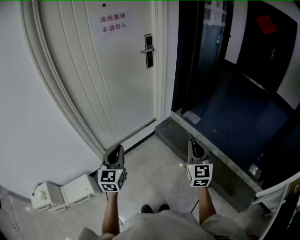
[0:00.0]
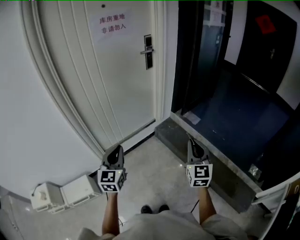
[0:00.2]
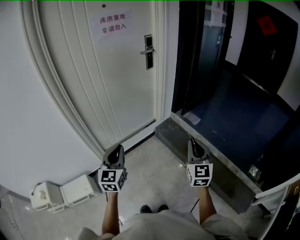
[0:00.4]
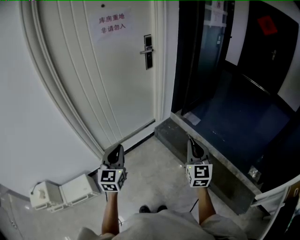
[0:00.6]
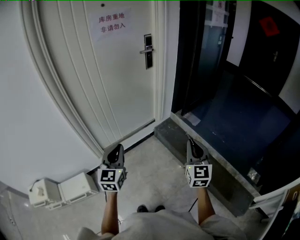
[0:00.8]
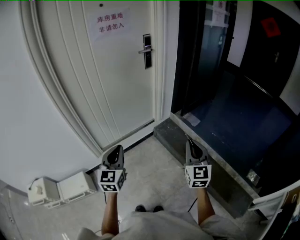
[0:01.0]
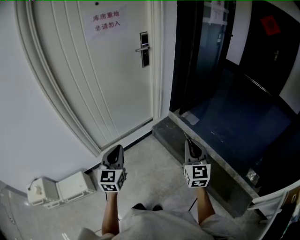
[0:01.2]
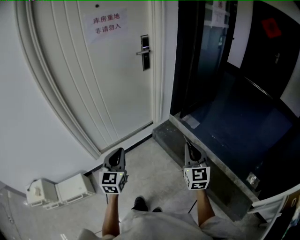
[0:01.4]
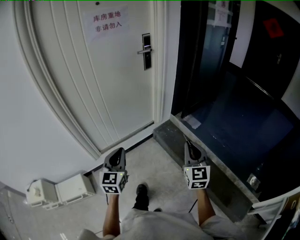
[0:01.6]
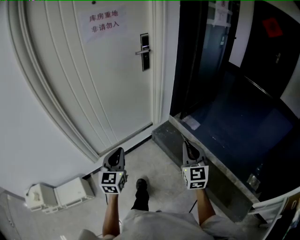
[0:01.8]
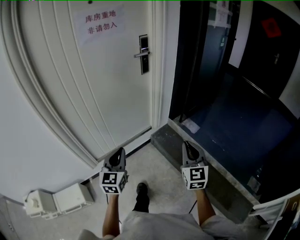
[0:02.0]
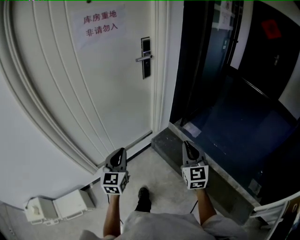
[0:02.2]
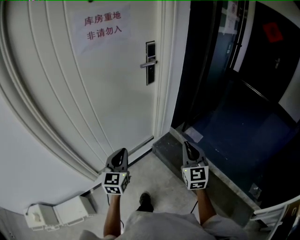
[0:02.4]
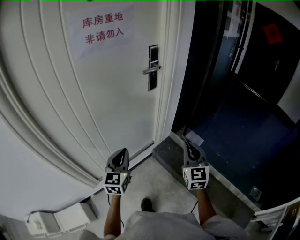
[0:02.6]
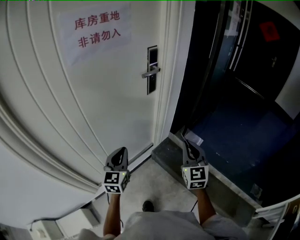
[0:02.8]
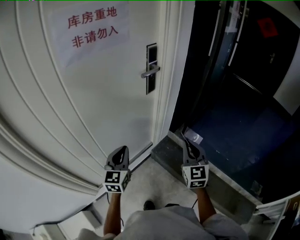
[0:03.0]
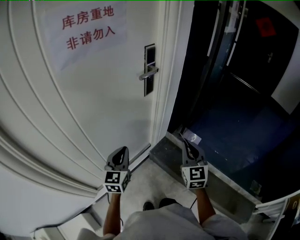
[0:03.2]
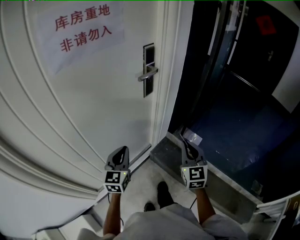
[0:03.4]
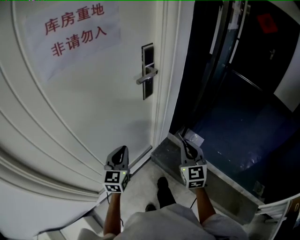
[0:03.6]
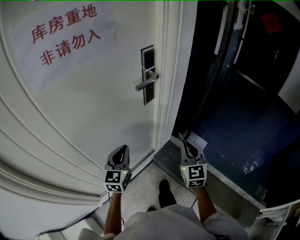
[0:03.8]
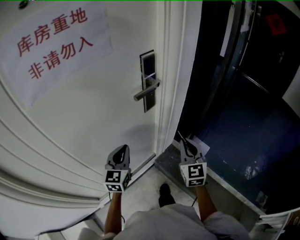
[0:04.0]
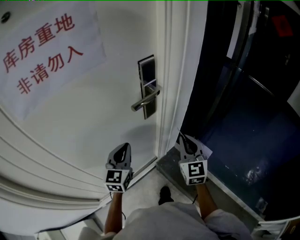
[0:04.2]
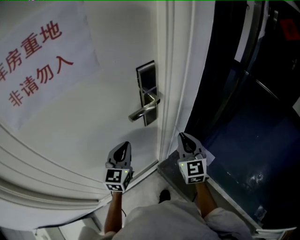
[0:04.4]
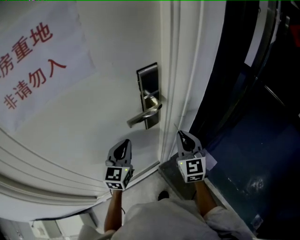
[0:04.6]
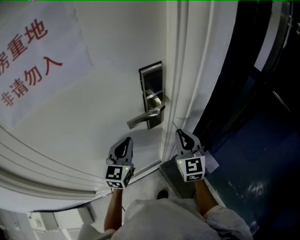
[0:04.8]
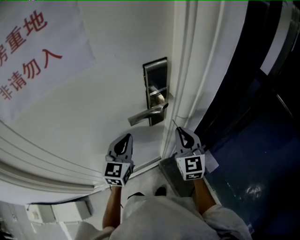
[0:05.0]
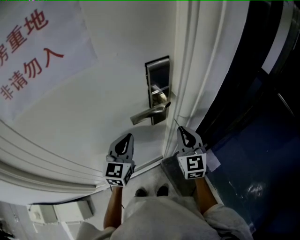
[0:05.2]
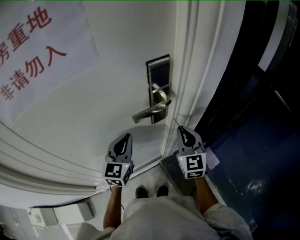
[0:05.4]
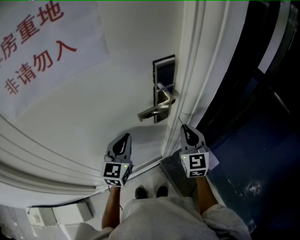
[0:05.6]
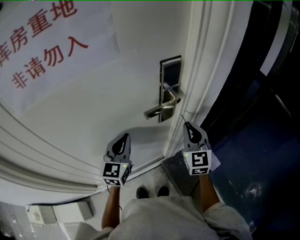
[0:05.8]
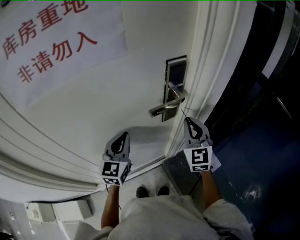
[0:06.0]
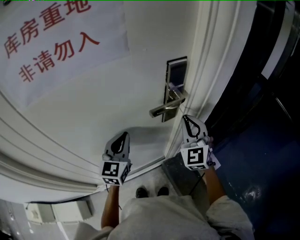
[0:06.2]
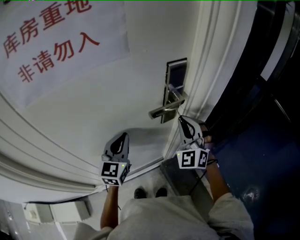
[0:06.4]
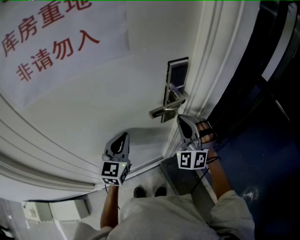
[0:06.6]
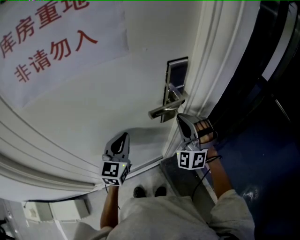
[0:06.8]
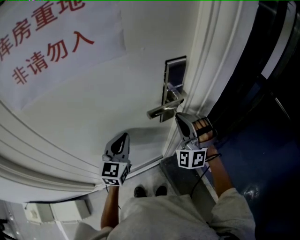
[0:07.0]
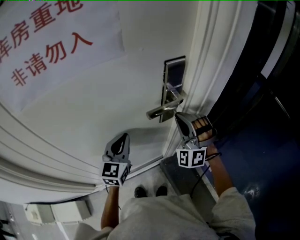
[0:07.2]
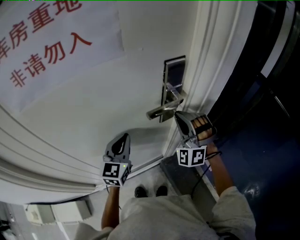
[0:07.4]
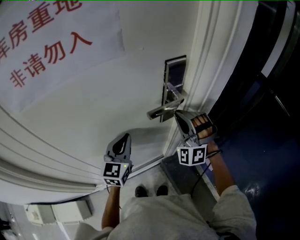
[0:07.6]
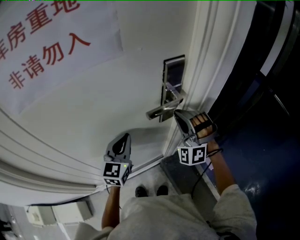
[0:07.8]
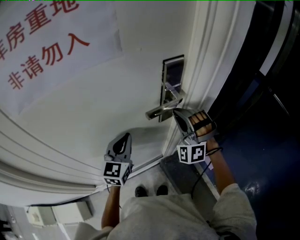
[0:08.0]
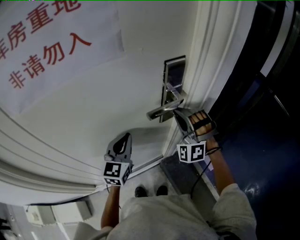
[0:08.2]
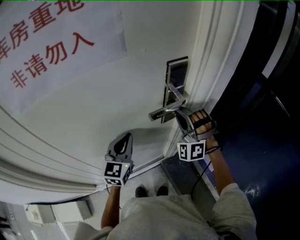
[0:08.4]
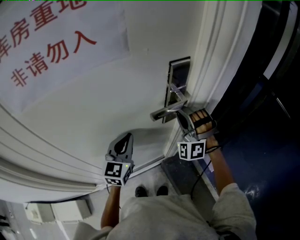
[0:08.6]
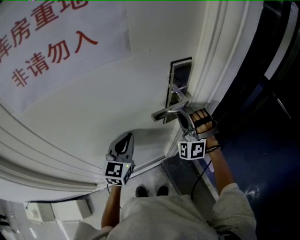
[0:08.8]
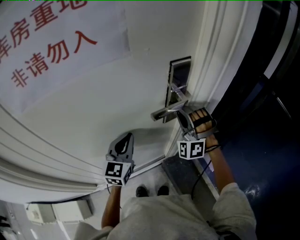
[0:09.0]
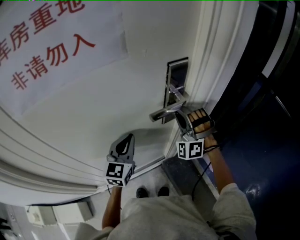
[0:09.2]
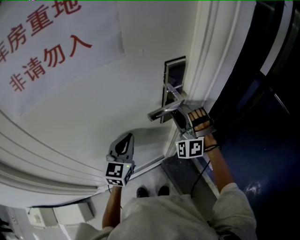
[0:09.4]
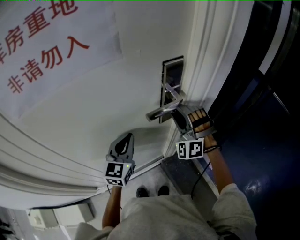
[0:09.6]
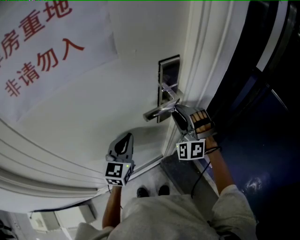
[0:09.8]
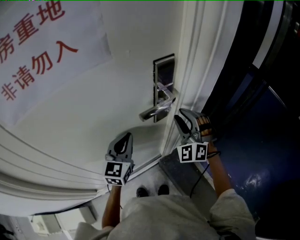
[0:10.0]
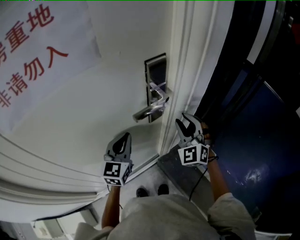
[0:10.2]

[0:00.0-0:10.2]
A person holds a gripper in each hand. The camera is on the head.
0:00.0 to 0:01.4: Both grippers travel together to the right, roughly 5 cm.
0:01.4 to 0:03.0: Both grippers are carried forward, roughly 40 cm.
0:03.0 to 0:04.4: The two grippers go some 30 cm forward.
0:04.4 to 0:05.8: The right gripper goes some 5 cm forward.
0:05.8 to 0:07.2: The right gripper is displaced to the left by some 5 cm, and rotates around the line of its fingers by roughly 60 degrees, counterclockwise from behind.
0:07.2 to 0:08.8: There are only small adjustments of the grippers.
0:08.8 to 0:10.2: The right gripper goes about 10 cm to the right, changes its angle by approximately 40 degrees, and opens up.

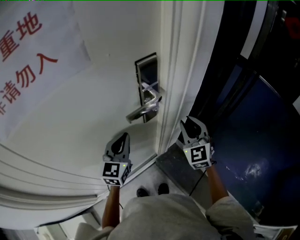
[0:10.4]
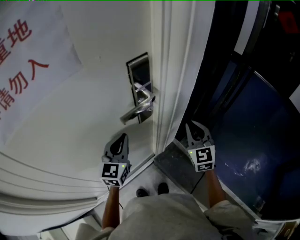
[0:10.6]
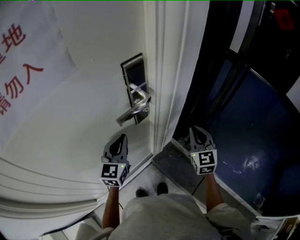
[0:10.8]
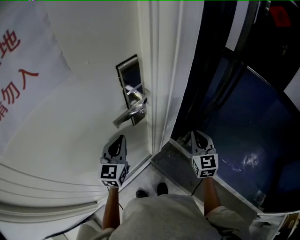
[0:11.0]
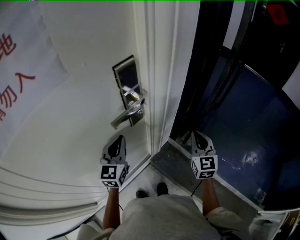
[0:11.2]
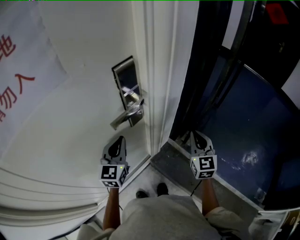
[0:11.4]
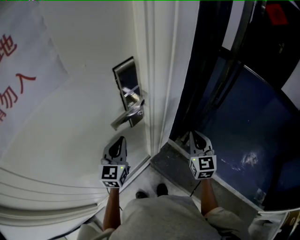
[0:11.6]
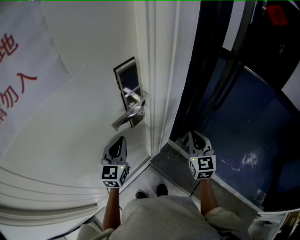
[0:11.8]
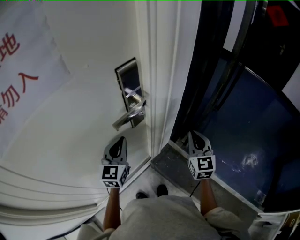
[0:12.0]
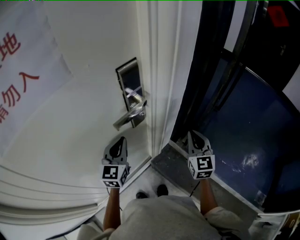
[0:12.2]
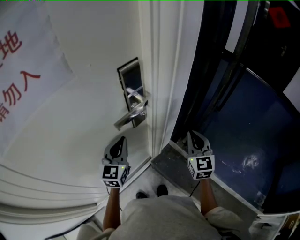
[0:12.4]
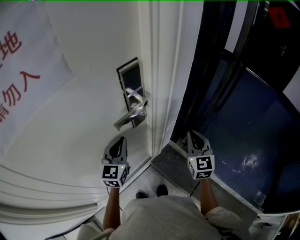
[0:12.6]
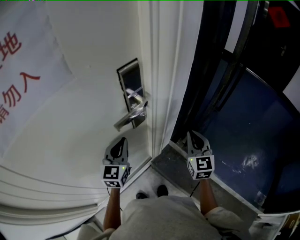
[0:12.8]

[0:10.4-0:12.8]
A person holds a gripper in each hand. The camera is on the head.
0:10.4 to 0:11.6: The right gripper shifts approximately 10 cm to the right, turns by about 30 degrees, and closes up.
0:11.6 to 0:12.8: There are only small adjustments of the grippers.

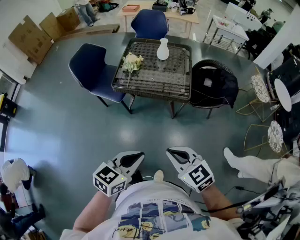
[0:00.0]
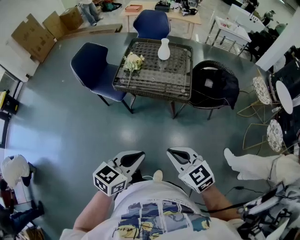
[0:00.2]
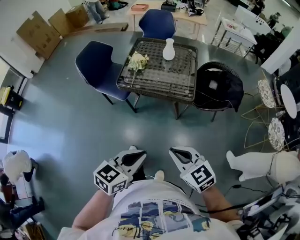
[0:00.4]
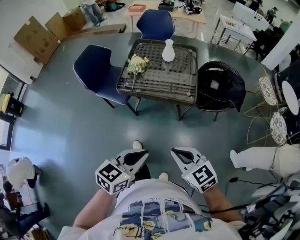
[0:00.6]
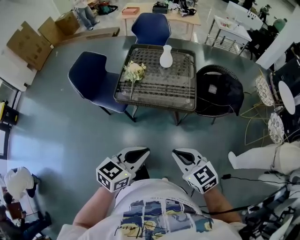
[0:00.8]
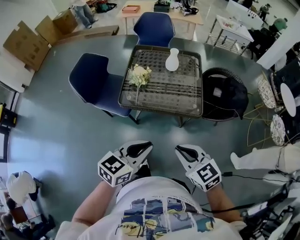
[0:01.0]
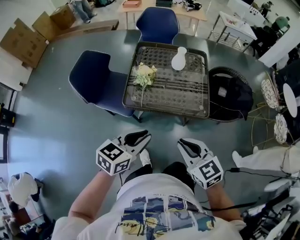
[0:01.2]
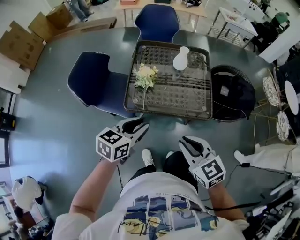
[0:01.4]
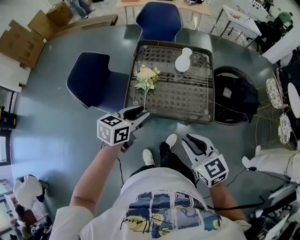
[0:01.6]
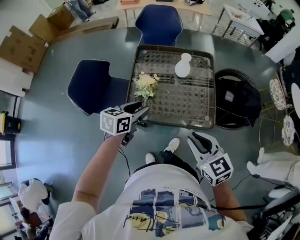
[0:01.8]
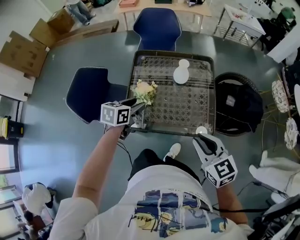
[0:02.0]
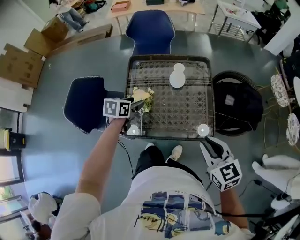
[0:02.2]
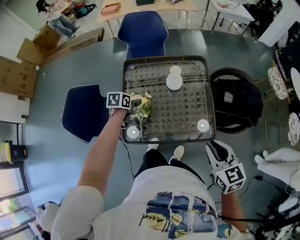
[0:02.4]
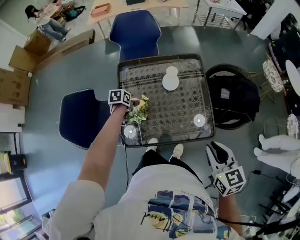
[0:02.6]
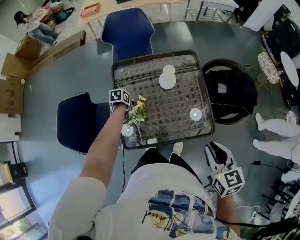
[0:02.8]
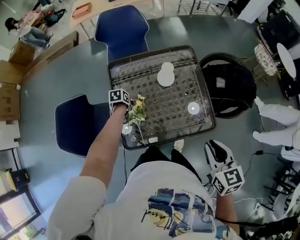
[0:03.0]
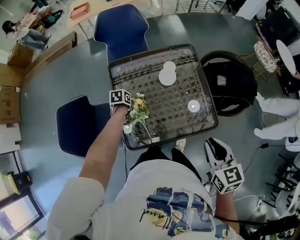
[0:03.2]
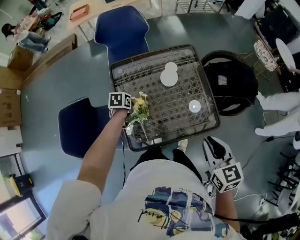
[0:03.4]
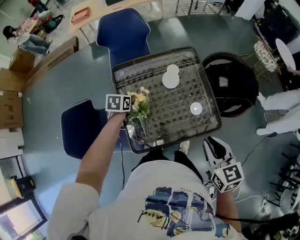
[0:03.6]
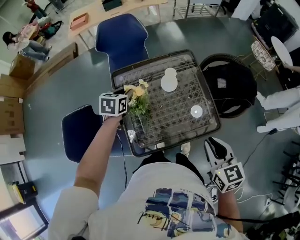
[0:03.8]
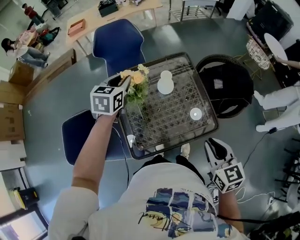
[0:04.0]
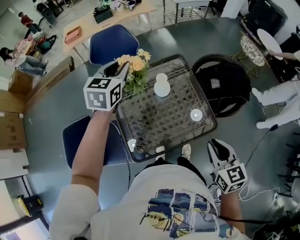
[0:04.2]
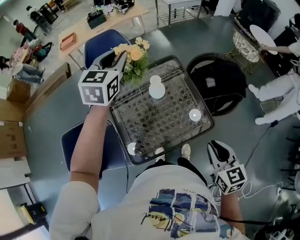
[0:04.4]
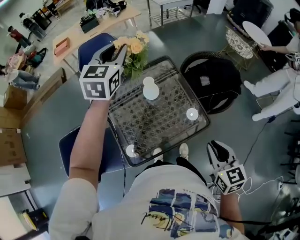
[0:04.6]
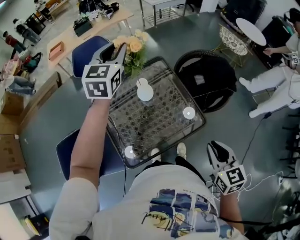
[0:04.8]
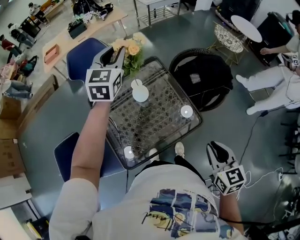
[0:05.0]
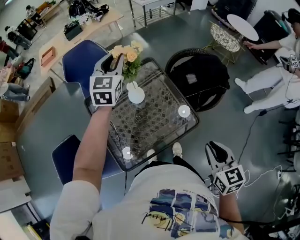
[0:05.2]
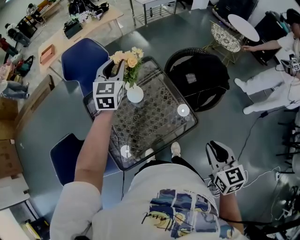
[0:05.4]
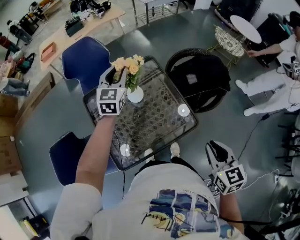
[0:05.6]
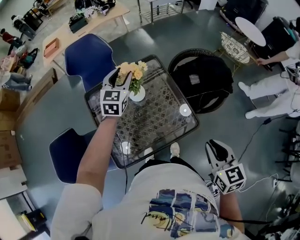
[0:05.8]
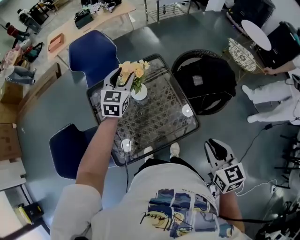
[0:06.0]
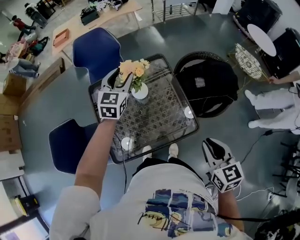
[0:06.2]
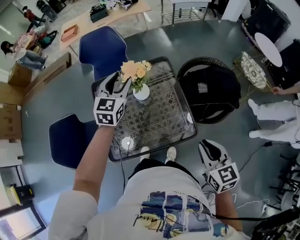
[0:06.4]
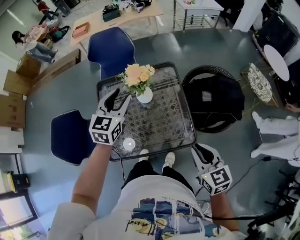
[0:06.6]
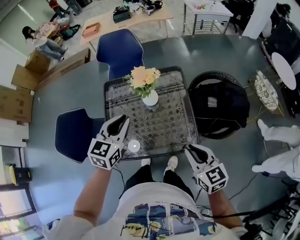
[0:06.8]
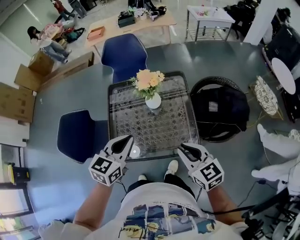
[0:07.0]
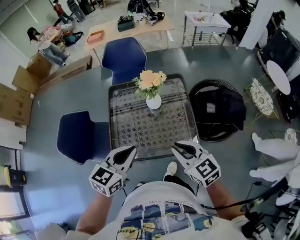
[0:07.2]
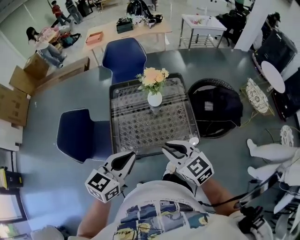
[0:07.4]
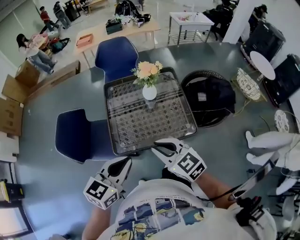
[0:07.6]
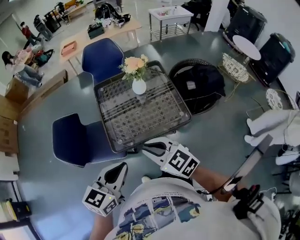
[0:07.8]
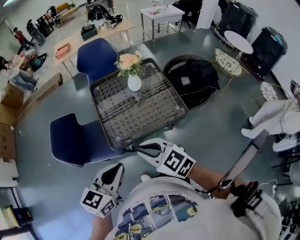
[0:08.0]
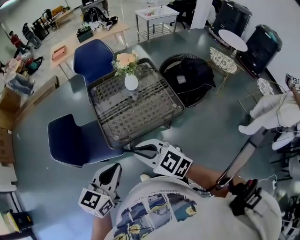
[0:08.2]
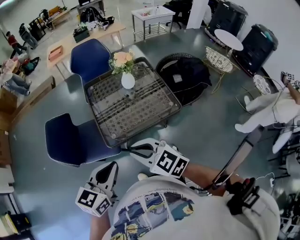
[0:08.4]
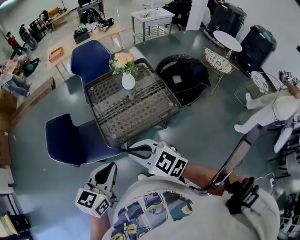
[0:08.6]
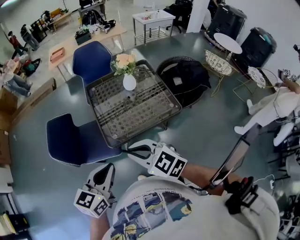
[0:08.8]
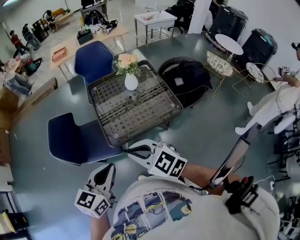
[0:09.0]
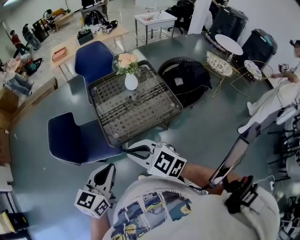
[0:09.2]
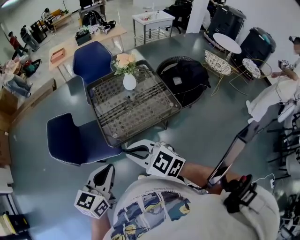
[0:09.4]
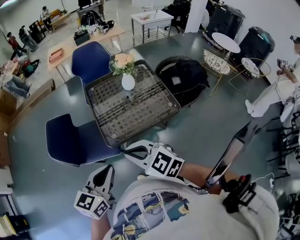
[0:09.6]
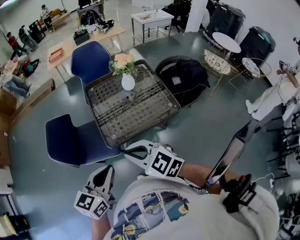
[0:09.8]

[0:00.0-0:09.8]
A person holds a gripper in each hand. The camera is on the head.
0:00.0 to 0:01.4: The two grippers go approximately 30 cm forward and to the left.
0:01.4 to 0:02.8: The left gripper ends up some 50 cm from where it was, points its fingers about 40 degrees further downward, and opens; the right gripper changes place by some 20 cm, and rotates about 40 degrees.
0:02.8 to 0:04.2: The left gripper travels upward by some 40 cm, tips its fingers upward by some 50 degrees, and closes its fingers.
0:04.2 to 0:05.6: The left gripper travels to the right, downward and forward by approximately 15 cm; the right gripper heads to the right, covering some 10 cm.
0:05.6 to 0:07.0: The right gripper goes some 10 cm forward and to the left, and changes its angle by approximately 40 degrees. The left gripper is displaced backward by approximately 30 cm, and rotates some 20 degrees.
0:07.0 to 0:08.4: The left gripper shifts roughly 30 cm backward and to the left. Meanwhile the right gripper travels to the left and backward by about 35 cm.
0:08.4 to 0:09.8: The grippers move only a little.

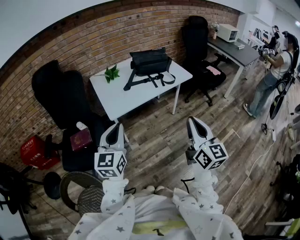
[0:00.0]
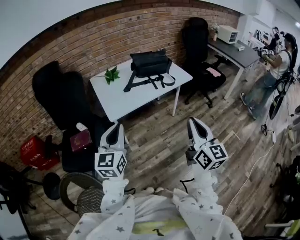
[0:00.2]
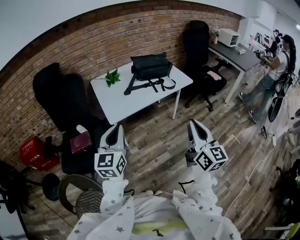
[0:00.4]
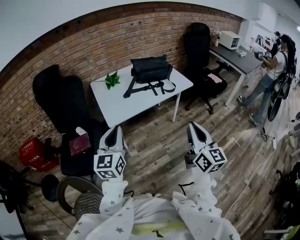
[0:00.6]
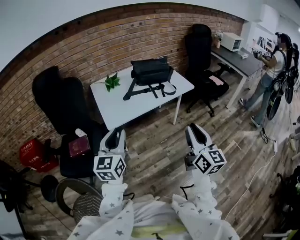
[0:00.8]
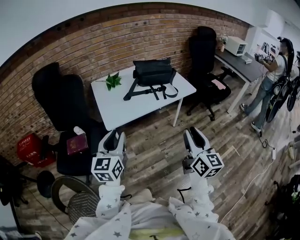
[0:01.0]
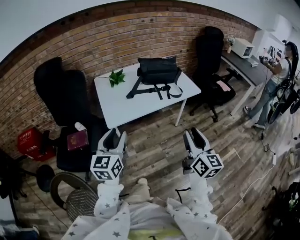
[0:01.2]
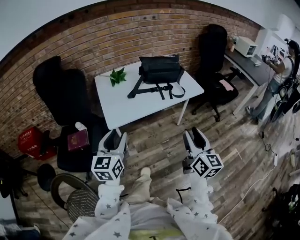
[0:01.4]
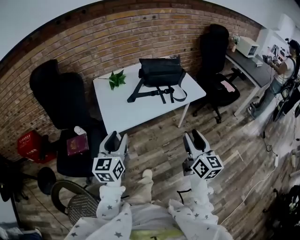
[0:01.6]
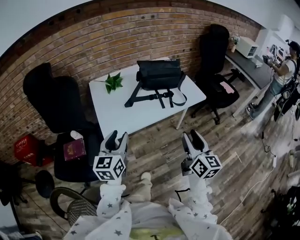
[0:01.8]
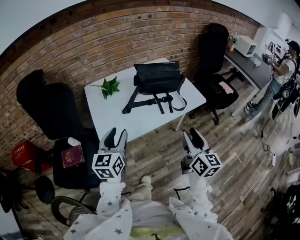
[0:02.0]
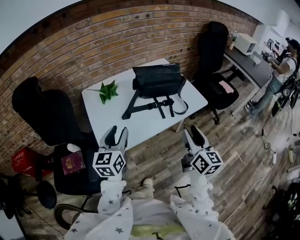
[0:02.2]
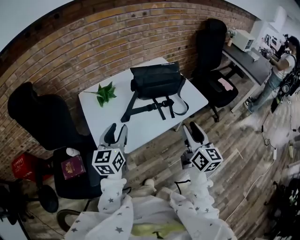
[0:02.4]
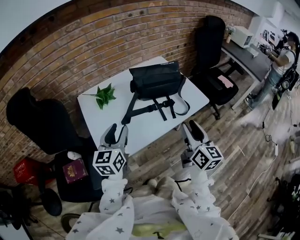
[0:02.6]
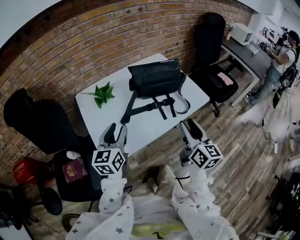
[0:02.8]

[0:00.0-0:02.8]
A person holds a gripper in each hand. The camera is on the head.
0:00.0 to 0:01.4: The left gripper shifts about 10 cm forward, and opens up. The right gripper moves forward and downward, about 15 cm, and opens.
0:01.4 to 0:02.8: The two grippers go roughly 25 cm forward.
